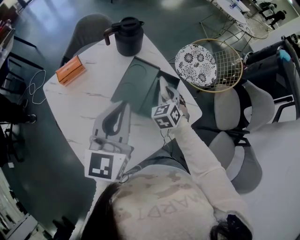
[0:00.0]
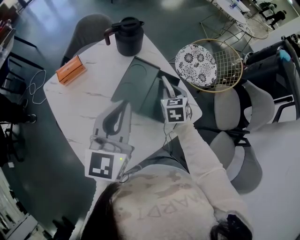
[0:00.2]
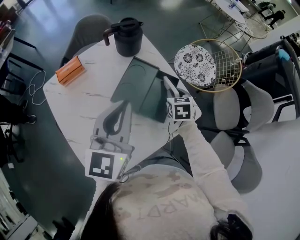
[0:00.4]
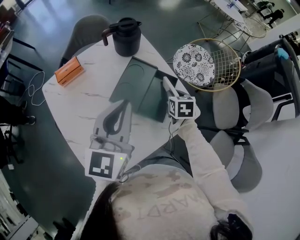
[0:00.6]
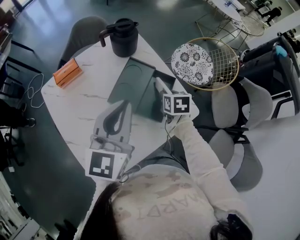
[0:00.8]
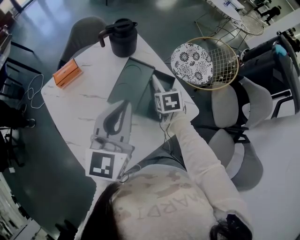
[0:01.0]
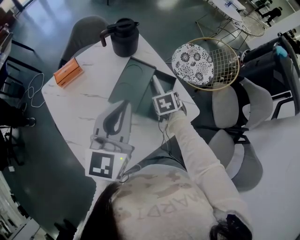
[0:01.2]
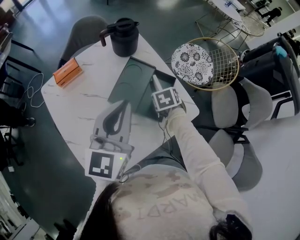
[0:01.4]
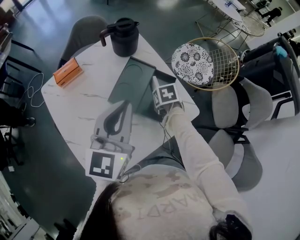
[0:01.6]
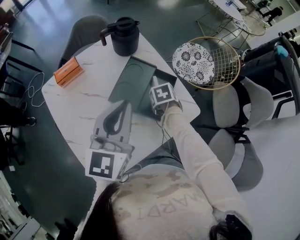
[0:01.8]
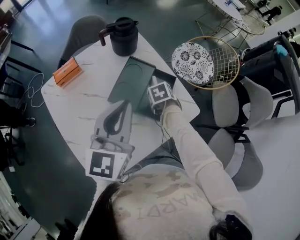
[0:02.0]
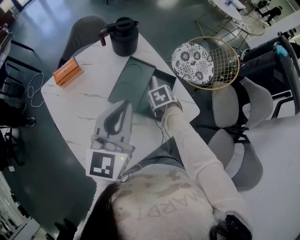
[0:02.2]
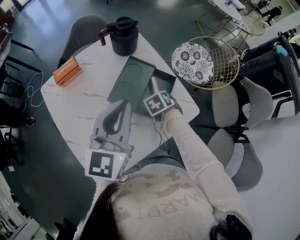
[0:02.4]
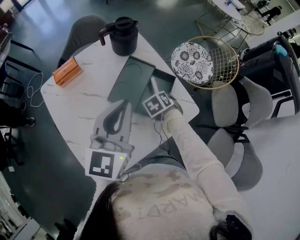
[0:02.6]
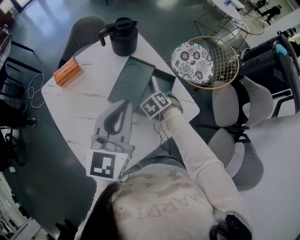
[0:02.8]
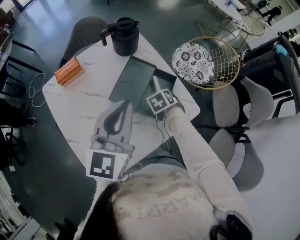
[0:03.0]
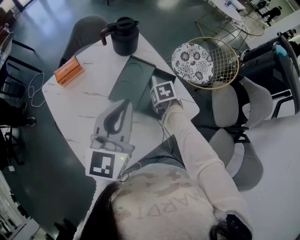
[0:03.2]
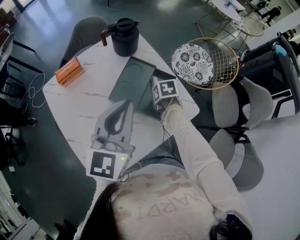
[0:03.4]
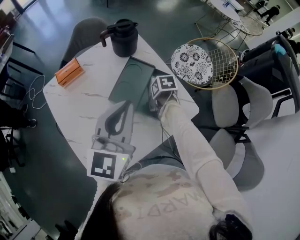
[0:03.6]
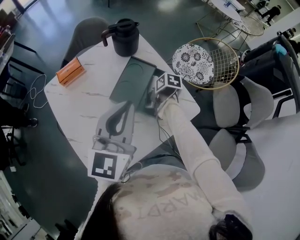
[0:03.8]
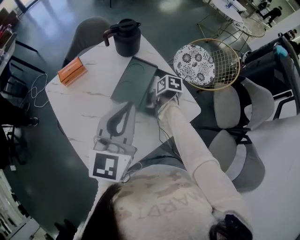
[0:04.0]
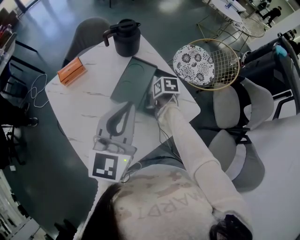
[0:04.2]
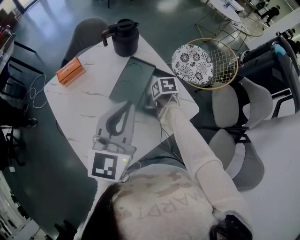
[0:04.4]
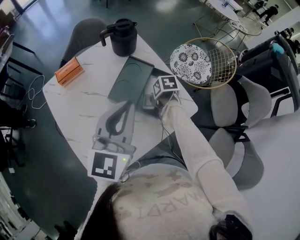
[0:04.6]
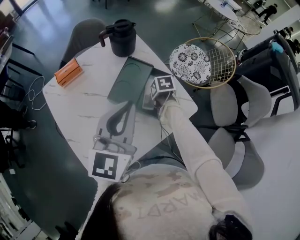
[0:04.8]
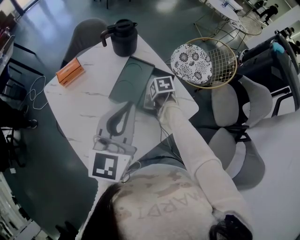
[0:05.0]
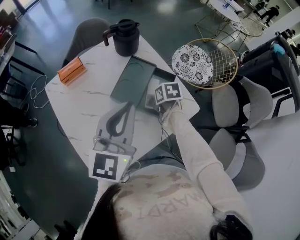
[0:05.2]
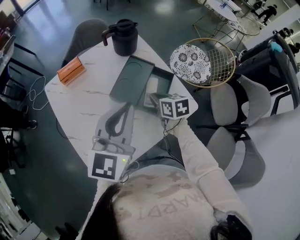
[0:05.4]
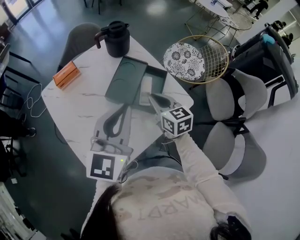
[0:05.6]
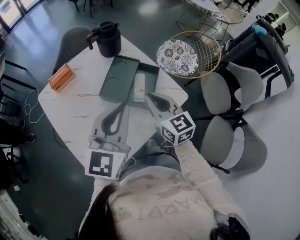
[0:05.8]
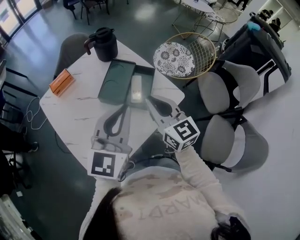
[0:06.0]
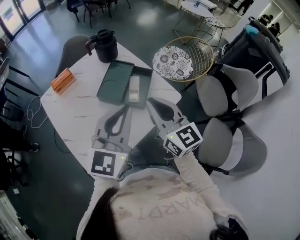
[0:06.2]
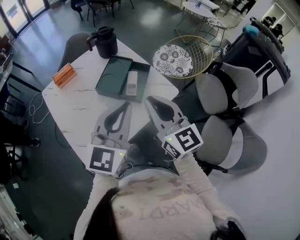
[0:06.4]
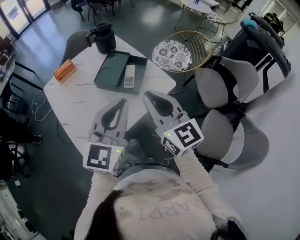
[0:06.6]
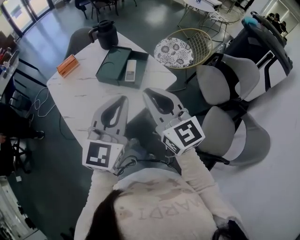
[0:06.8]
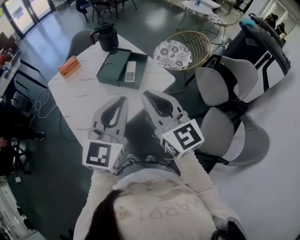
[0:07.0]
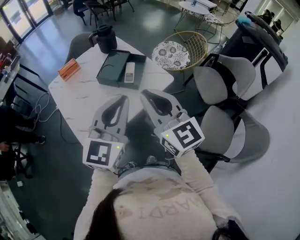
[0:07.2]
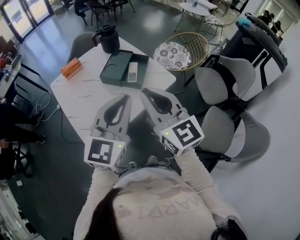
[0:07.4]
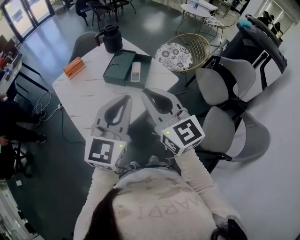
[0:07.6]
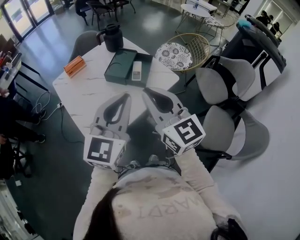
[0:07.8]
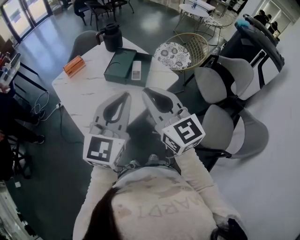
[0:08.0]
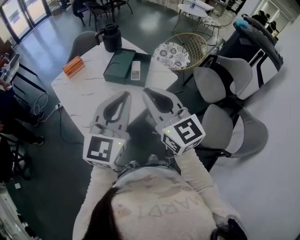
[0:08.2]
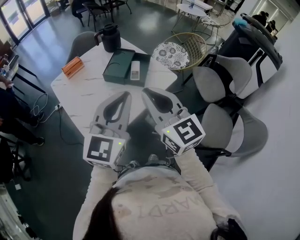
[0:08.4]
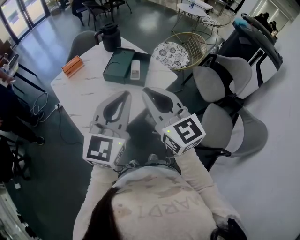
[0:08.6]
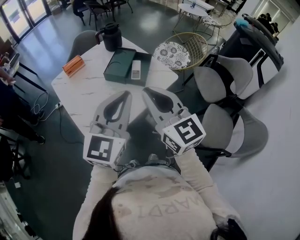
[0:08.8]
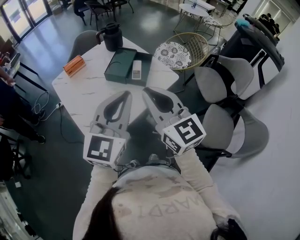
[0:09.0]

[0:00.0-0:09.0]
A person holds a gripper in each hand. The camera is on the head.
0:00.0 to 0:01.6: The right gripper goes about 5 cm downward, and points its fingers about 30 degrees further downward.
0:01.6 to 0:03.0: The right gripper changes its angle by approximately 20 degrees.
0:03.0 to 0:04.4: The right gripper changes its angle by approximately 40 degrees.
0:04.4 to 0:06.0: The left gripper heads backward, covering approximately 10 cm; the right gripper moves upward and backward, roughly 30 cm, tilts its fingers approximately 60 degrees upward, and closes up.
0:06.0 to 0:07.6: The left gripper goes some 20 cm backward, while the right gripper shifts about 25 cm backward and upward.
0:07.6 to 0:09.0: The grippers make only small movements.

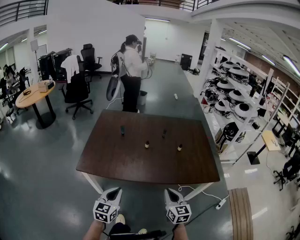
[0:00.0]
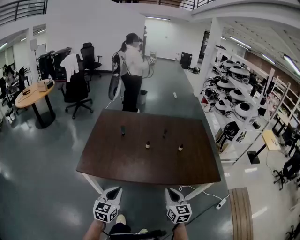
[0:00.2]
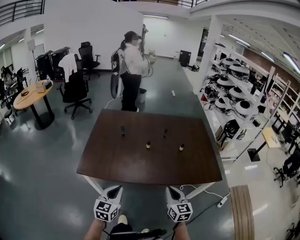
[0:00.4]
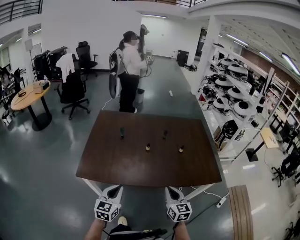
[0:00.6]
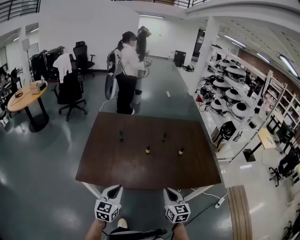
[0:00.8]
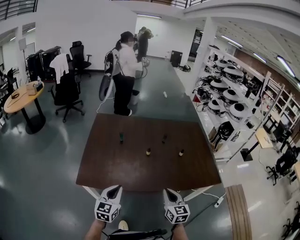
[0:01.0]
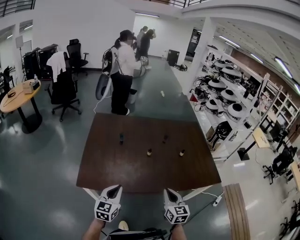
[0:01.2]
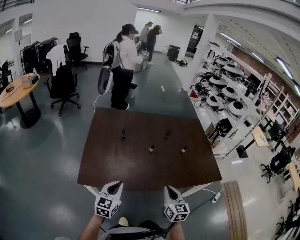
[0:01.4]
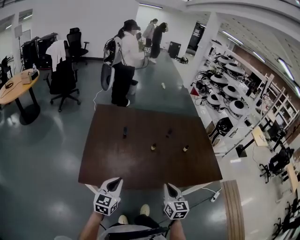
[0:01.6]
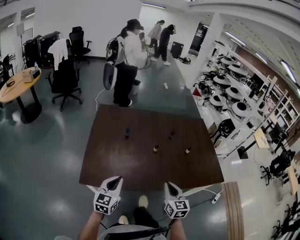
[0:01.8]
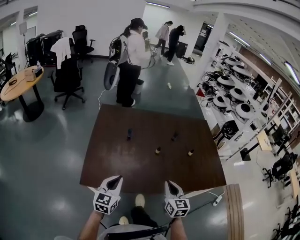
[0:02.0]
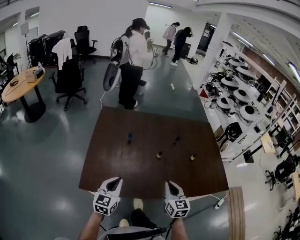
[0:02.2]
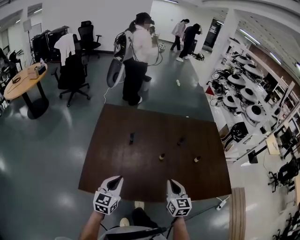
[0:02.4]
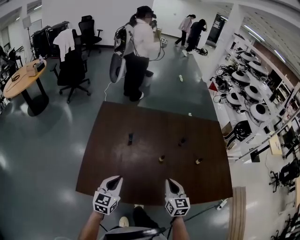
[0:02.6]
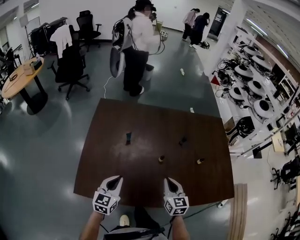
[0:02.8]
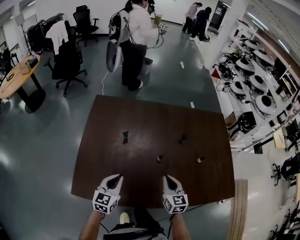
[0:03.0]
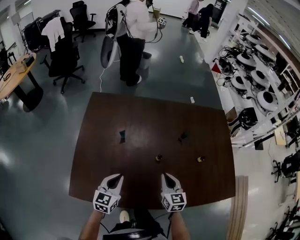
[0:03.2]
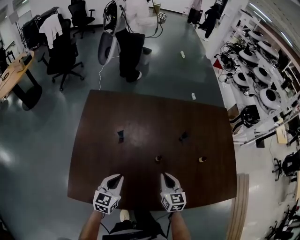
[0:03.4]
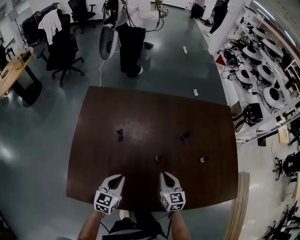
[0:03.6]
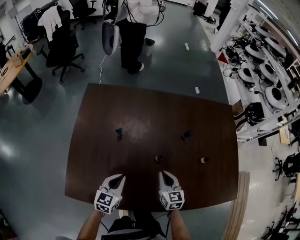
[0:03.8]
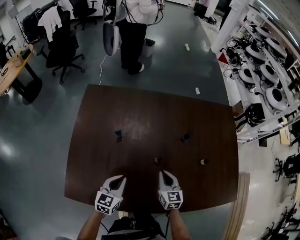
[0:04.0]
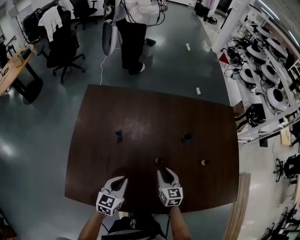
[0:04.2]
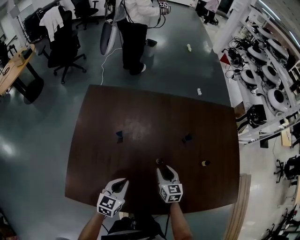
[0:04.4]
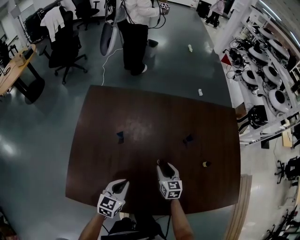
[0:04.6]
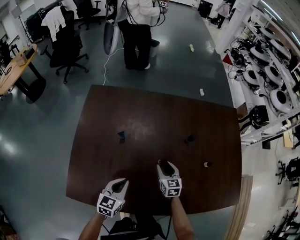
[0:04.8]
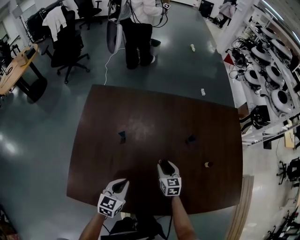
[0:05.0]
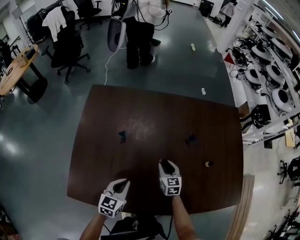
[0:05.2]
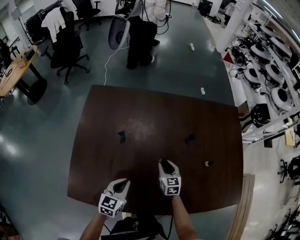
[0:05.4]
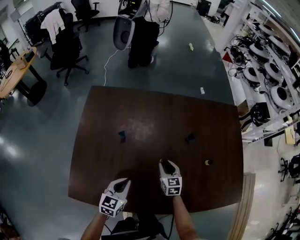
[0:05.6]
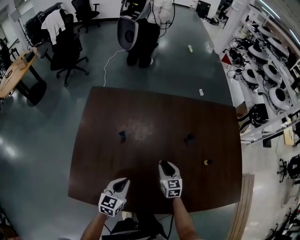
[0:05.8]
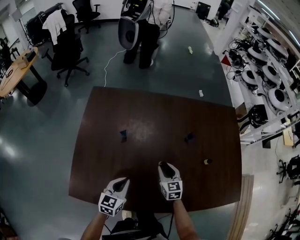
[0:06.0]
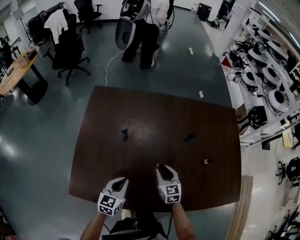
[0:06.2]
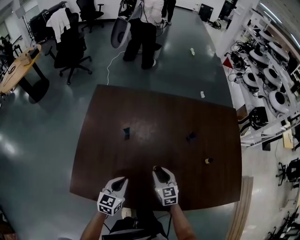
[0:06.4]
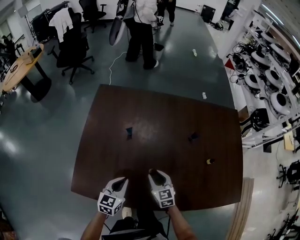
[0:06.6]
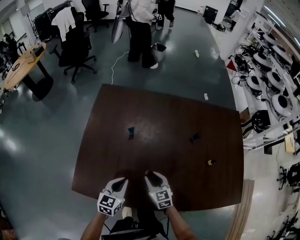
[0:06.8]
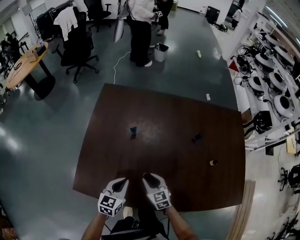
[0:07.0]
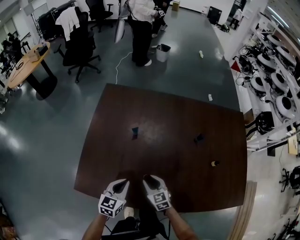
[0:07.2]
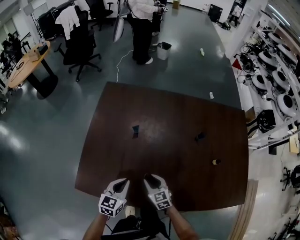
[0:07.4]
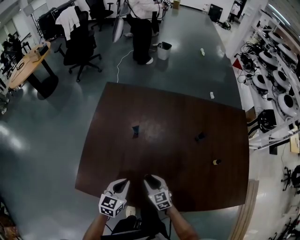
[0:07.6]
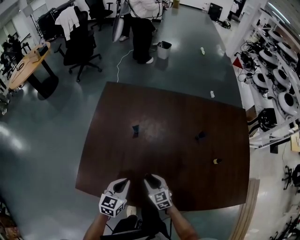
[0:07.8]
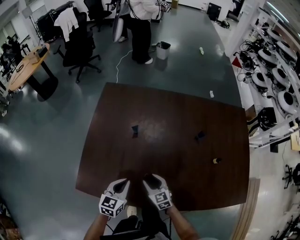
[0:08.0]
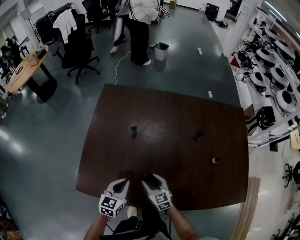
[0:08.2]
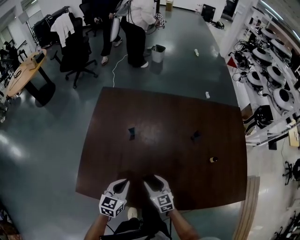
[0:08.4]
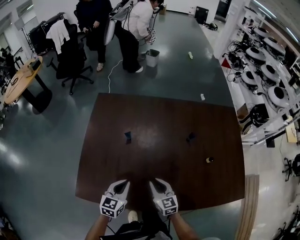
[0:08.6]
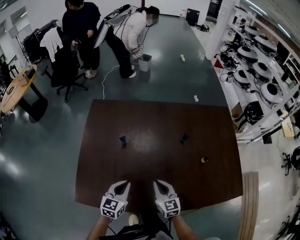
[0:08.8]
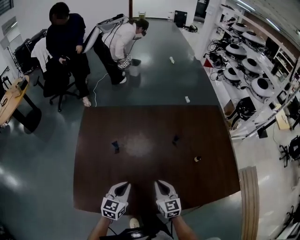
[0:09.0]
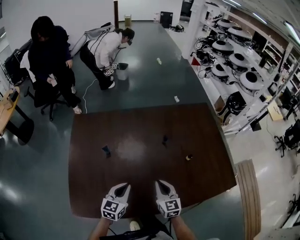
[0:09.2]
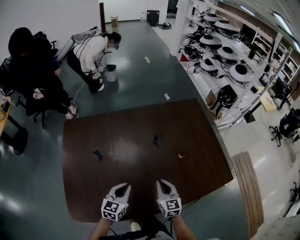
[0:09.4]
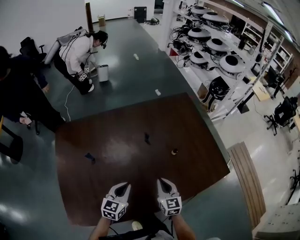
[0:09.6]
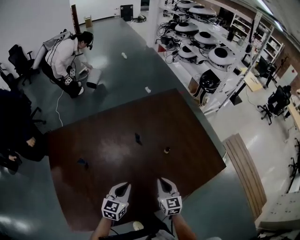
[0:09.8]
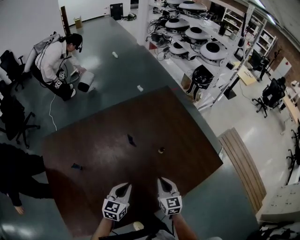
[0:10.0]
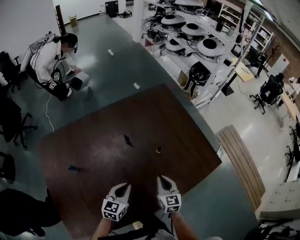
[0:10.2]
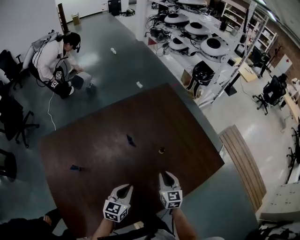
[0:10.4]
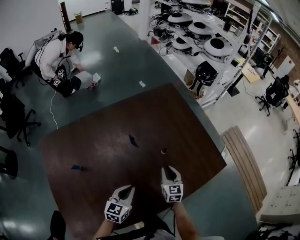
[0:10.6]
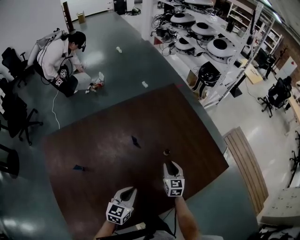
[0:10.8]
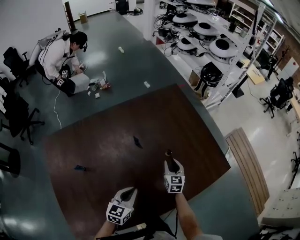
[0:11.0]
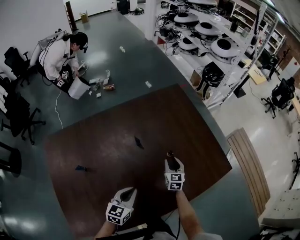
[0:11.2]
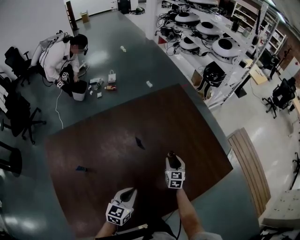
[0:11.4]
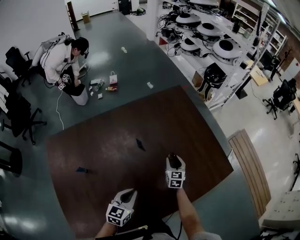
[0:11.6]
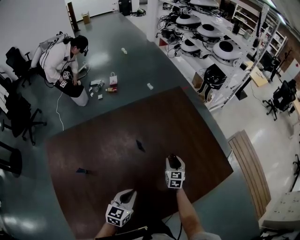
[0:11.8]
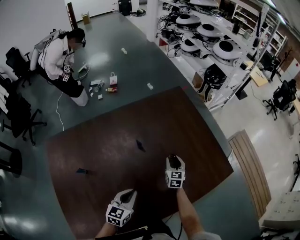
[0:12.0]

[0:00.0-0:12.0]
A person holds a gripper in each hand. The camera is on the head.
0:00.0 to 0:01.6: The left gripper moves forward and to the left, some 15 cm, while the right gripper goes roughly 15 cm to the left and forward.
0:01.6 to 0:03.0: The right gripper travels forward by about 20 cm. Meanwhile the left gripper moves forward and downward, some 20 cm.
0:03.0 to 0:04.4: The right gripper is displaced downward and forward by about 15 cm, and opens its fingers, while the left gripper travels downward and to the right by about 10 cm.
0:04.4 to 0:06.0: The grippers make only small movements.
0:06.0 to 0:07.6: The left gripper moves about 5 cm. The right gripper moves to the left and backward, approximately 15 cm, and turns by some 20 degrees.
0:07.6 to 0:09.0: The right gripper heads upward and to the right, covering approximately 15 cm, turns by some 30 degrees, and closes up. Meanwhile the left gripper goes roughly 5 cm to the right.
0:09.0 to 0:10.4: The left gripper moves some 20 cm, and changes its angle by roughly 30 degrees. Meanwhile the right gripper changes place by roughly 20 cm, and turns by some 30 degrees.
0:10.4 to 0:12.0: The right gripper goes about 15 cm forward and downward, and opens its fingers.

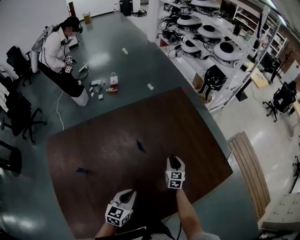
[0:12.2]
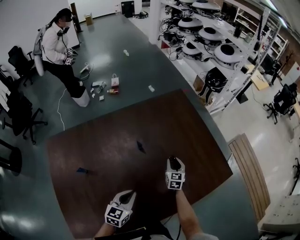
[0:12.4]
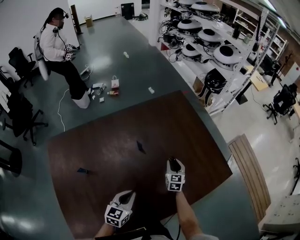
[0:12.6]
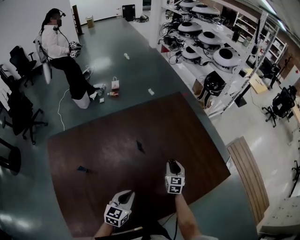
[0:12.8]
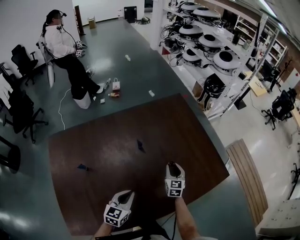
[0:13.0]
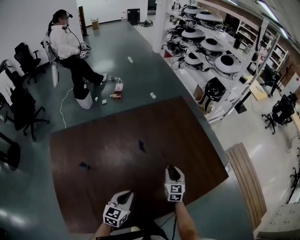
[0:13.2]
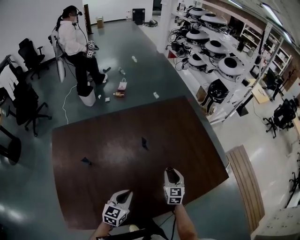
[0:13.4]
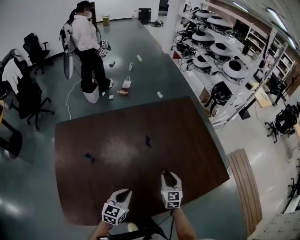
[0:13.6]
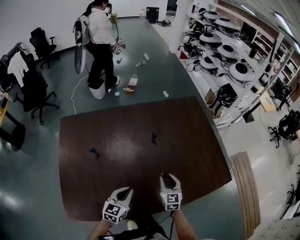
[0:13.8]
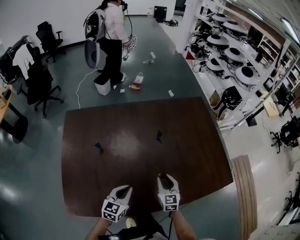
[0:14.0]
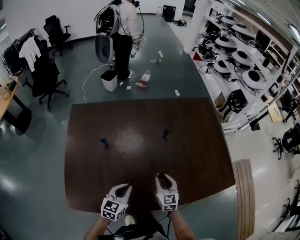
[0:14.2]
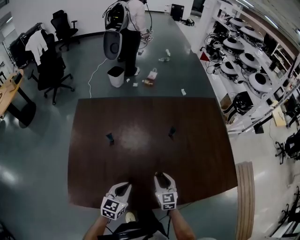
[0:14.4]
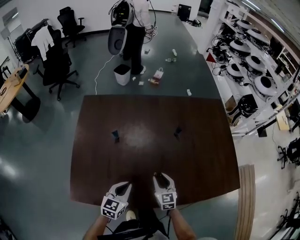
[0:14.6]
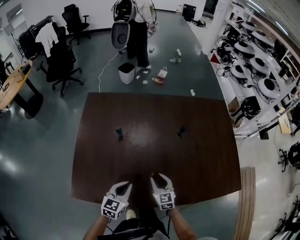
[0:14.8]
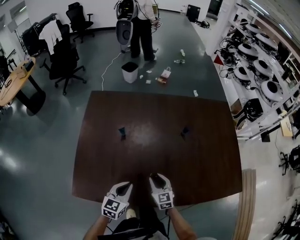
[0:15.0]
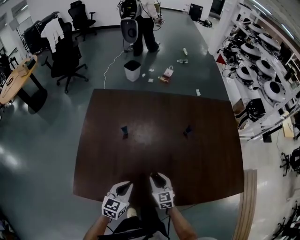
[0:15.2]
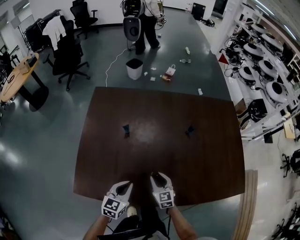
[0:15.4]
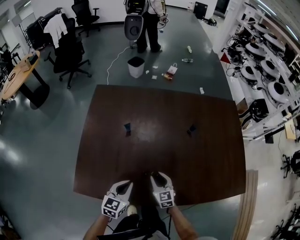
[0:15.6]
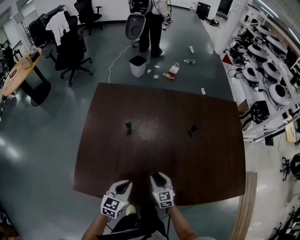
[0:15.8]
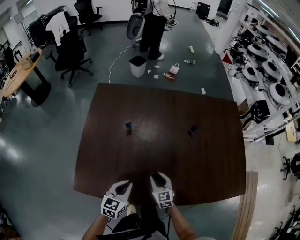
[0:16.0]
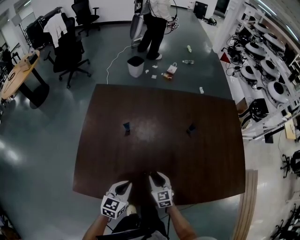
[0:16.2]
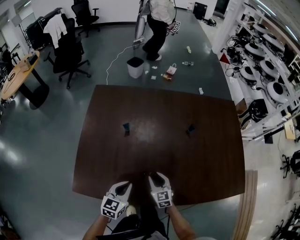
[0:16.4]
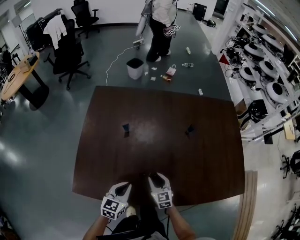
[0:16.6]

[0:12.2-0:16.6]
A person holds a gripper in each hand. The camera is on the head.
0:12.2 to 0:13.6: The right gripper goes about 15 cm backward and upward. Meanwhile the left gripper shifts about 5 cm backward.
0:13.6 to 0:15.2: The left gripper shifts by about 15 cm. Meanwhile the right gripper moves approximately 25 cm, and turns by some 30 degrees.
0:15.2 to 0:16.6: The grippers make only small movements.
